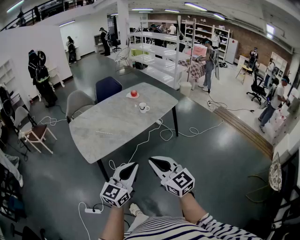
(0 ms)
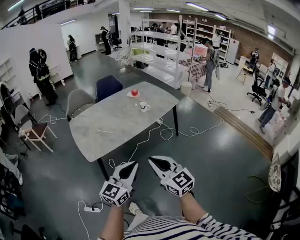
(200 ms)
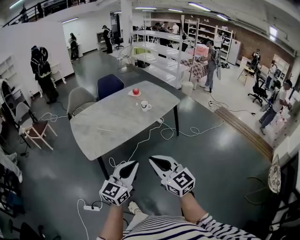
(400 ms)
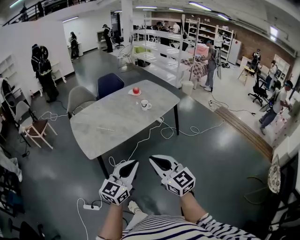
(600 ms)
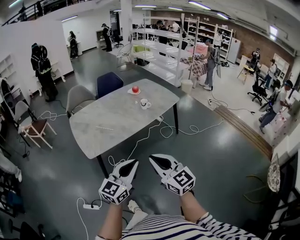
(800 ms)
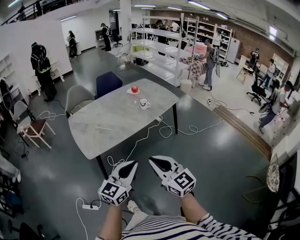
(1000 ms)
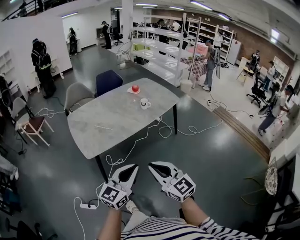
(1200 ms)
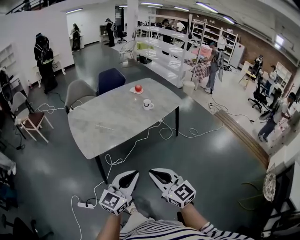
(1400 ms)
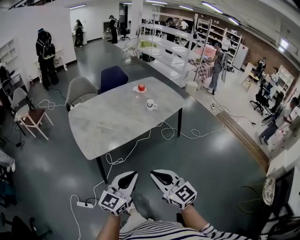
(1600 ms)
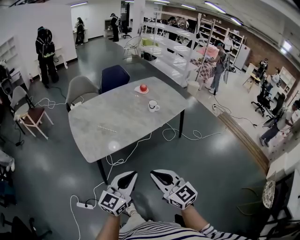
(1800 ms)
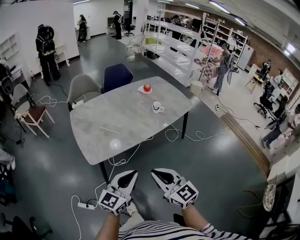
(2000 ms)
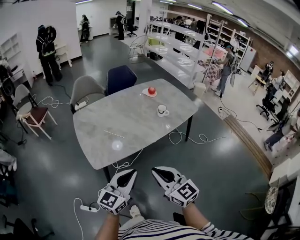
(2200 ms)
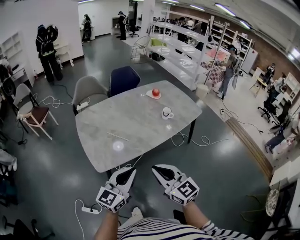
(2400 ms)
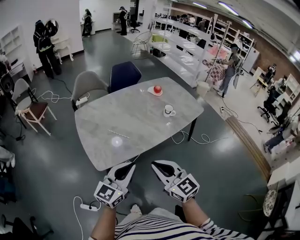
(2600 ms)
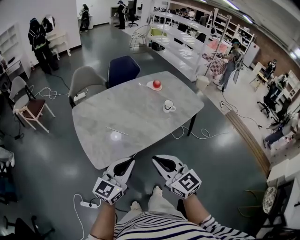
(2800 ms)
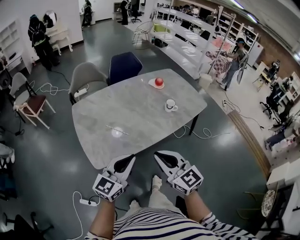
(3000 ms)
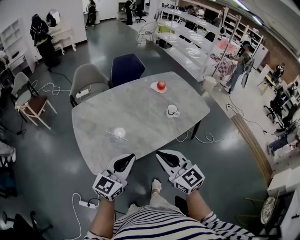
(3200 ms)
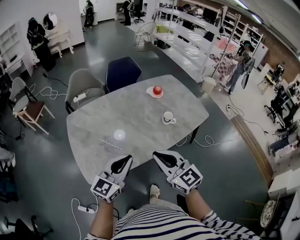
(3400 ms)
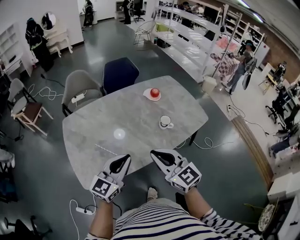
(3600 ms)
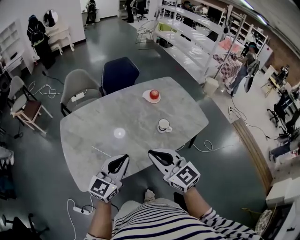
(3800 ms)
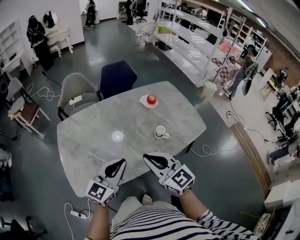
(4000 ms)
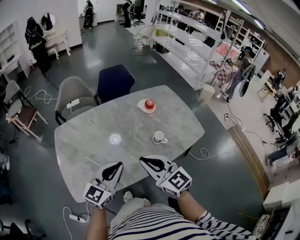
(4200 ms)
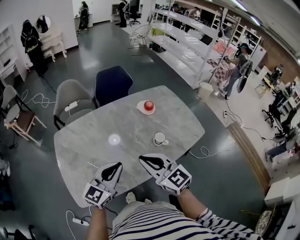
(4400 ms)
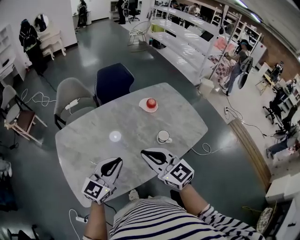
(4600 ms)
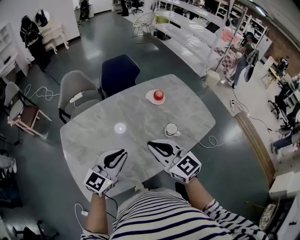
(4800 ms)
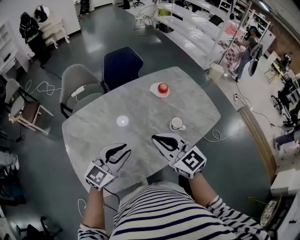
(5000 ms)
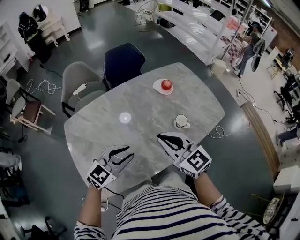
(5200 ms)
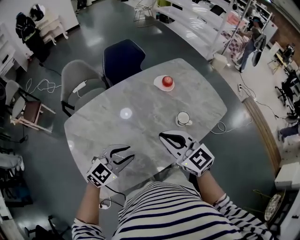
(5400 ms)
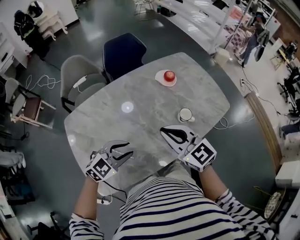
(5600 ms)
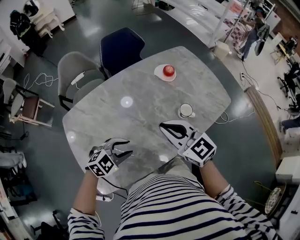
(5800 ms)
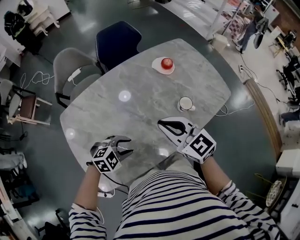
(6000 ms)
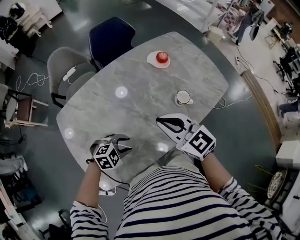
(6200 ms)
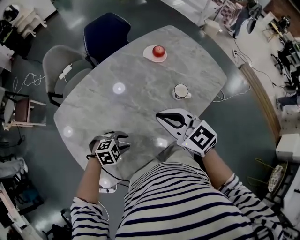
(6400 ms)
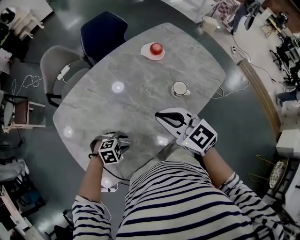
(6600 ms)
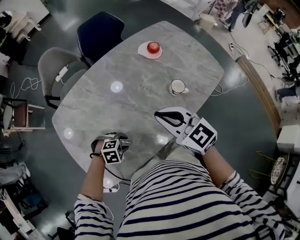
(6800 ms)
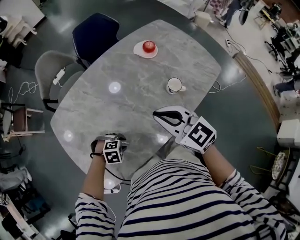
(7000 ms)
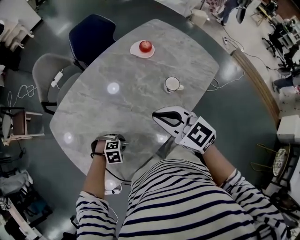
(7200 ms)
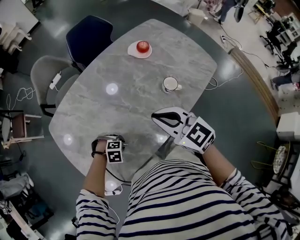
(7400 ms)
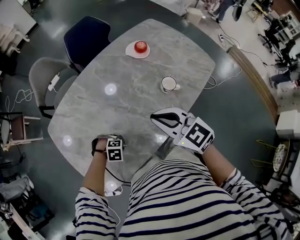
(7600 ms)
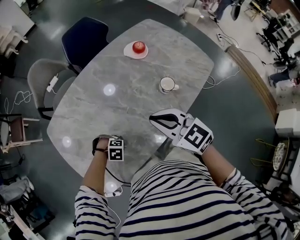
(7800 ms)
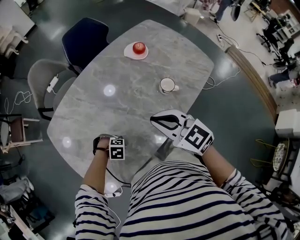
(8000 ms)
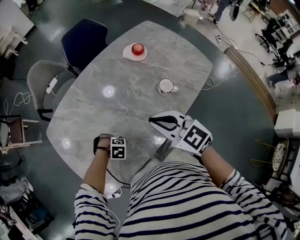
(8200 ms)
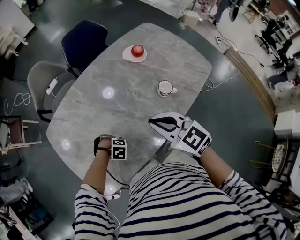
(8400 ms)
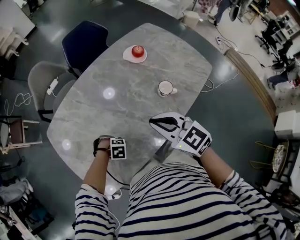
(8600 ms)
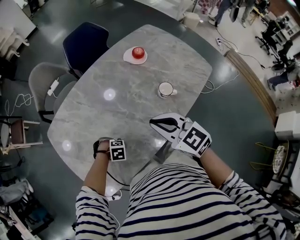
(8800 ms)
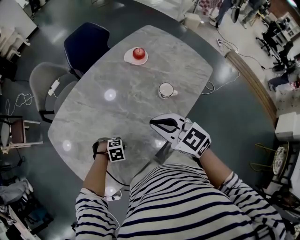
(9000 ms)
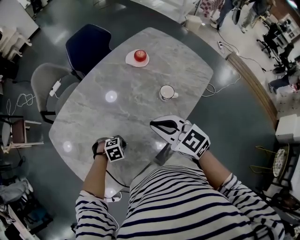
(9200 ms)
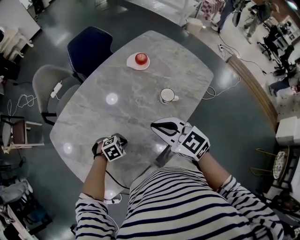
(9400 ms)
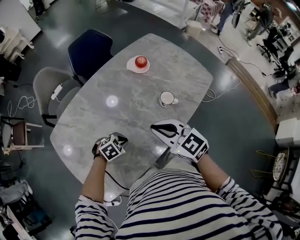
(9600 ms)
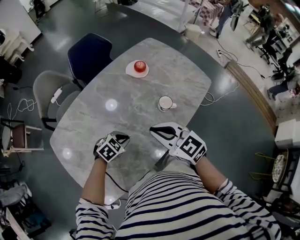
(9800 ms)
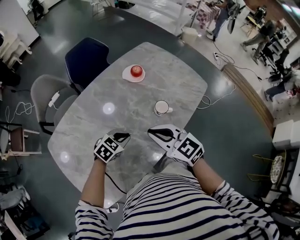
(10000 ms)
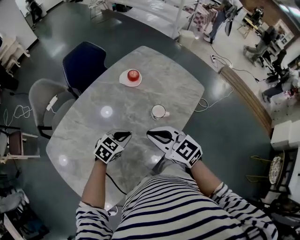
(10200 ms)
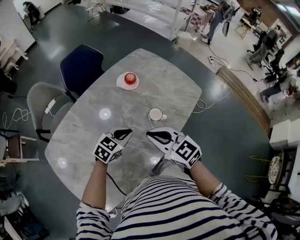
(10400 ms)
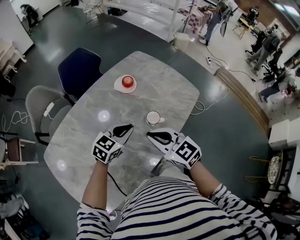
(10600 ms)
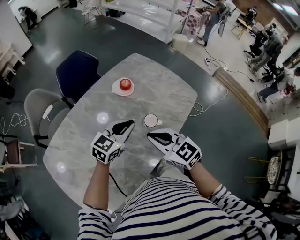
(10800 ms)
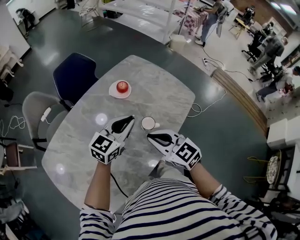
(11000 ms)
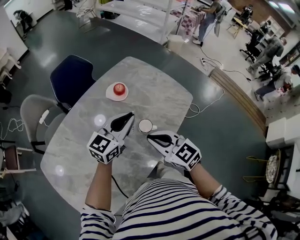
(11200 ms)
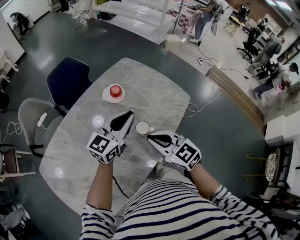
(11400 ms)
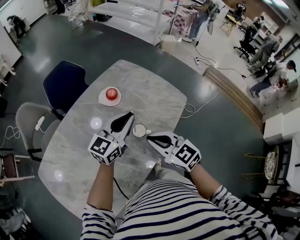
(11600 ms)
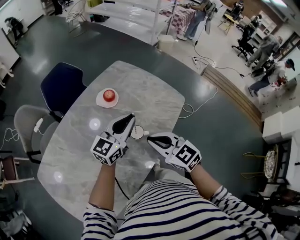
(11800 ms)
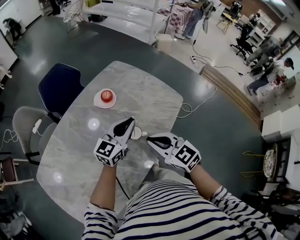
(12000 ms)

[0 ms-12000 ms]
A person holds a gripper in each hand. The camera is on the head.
0 ms to 1600 ms: The left gripper shifts by about 5 cm. The right gripper moves some 5 cm.
1600 ms to 3000 ms: The right gripper heads forward, covering about 20 cm. Meanwhile the left gripper is displaced forward and to the left by some 25 cm.
3000 ms to 4400 ms: The two grippers go roughly 25 cm forward.
4400 ms to 6000 ms: The right gripper is displaced forward by about 10 cm. Meanwhile the left gripper heads downward, covering approximately 20 cm, points its fingers approximately 50 degrees further downward, and opens up.
6000 ms to 7600 ms: The left gripper heads downward, covering approximately 15 cm, and changes its angle by some 40 degrees.
7600 ms to 9000 ms: There are only small adjustments of the grippers.
9000 ms to 10400 ms: The right gripper changes place by roughly 5 cm. The left gripper ends up roughly 30 cm from where it was, and points its fingers some 40 degrees further upward.
10400 ms to 12000 ms: The right gripper heads to the right and forward, covering approximately 10 cm; the left gripper heads to the right, forward and upward, covering approximately 20 cm, and points its fingers approximately 30 degrees further upward.

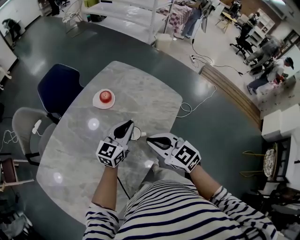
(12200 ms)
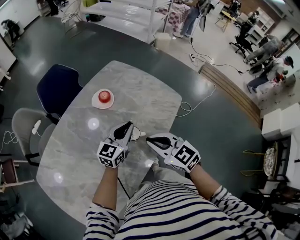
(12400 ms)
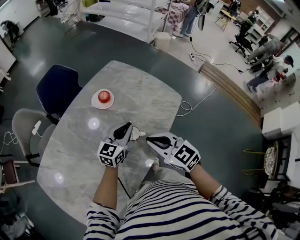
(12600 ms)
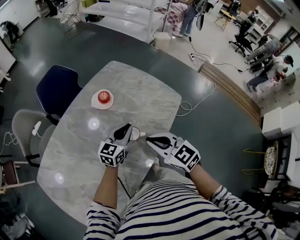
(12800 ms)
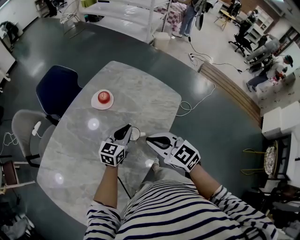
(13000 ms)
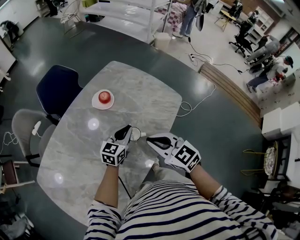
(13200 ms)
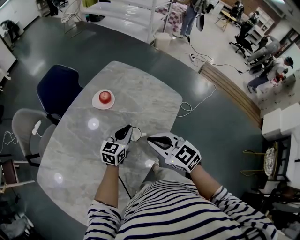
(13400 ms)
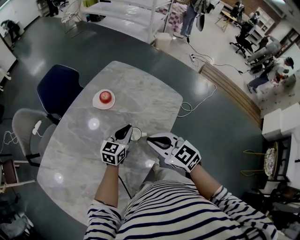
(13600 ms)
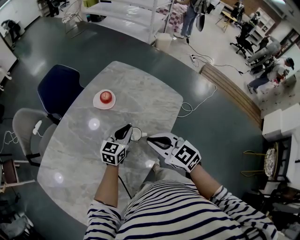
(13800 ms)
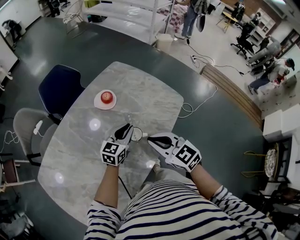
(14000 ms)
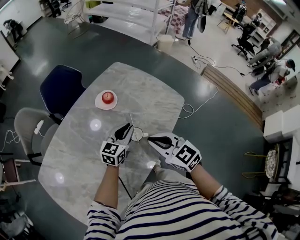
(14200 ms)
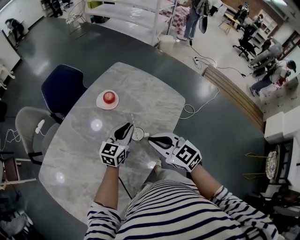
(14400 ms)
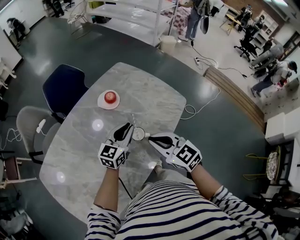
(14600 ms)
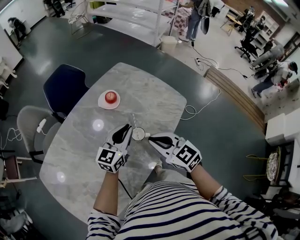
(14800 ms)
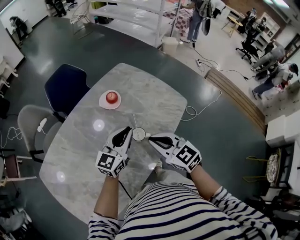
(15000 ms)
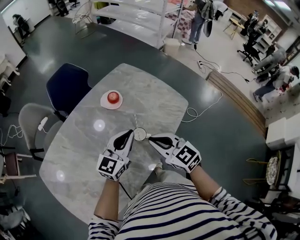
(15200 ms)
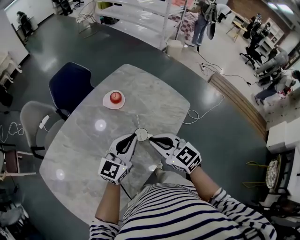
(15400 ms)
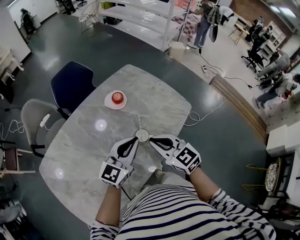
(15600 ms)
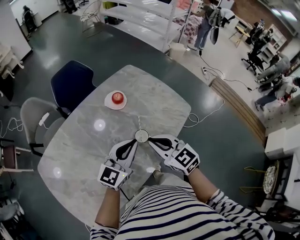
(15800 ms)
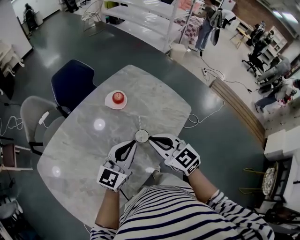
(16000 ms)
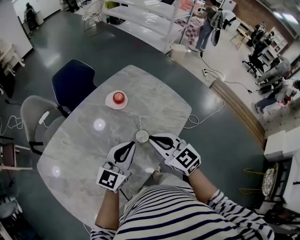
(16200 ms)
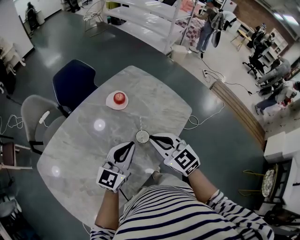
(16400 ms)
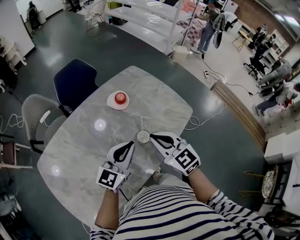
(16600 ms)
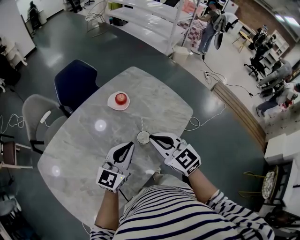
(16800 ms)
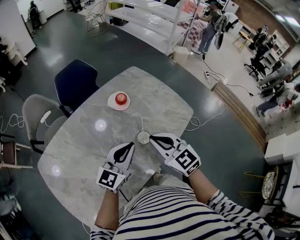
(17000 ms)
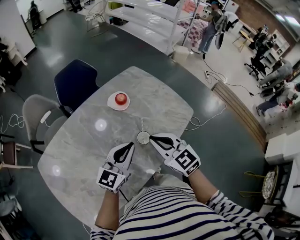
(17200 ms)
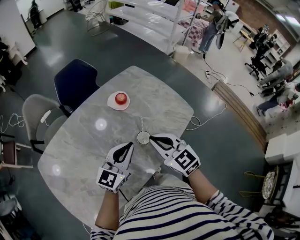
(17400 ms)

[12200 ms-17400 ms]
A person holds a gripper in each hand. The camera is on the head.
12200 ms to 14000 ms: The left gripper is displaced downward by some 5 cm.
14000 ms to 15600 ms: The left gripper heads upward and backward, covering about 15 cm.
15600 ms to 17400 ms: The grippers stay close to where they were, moving slightly.

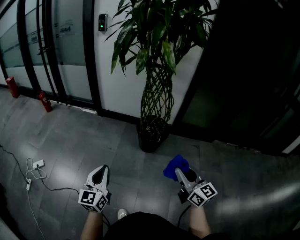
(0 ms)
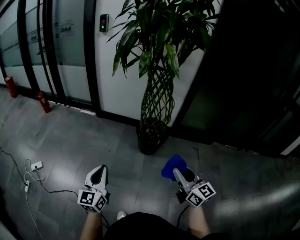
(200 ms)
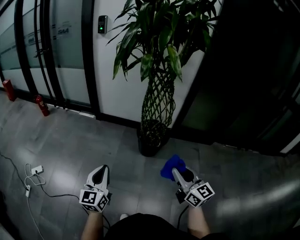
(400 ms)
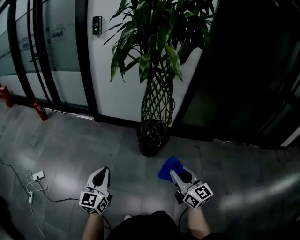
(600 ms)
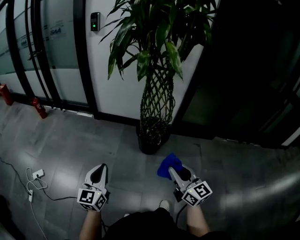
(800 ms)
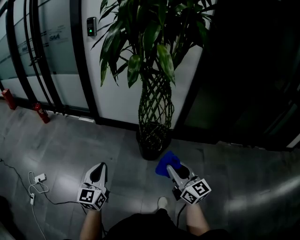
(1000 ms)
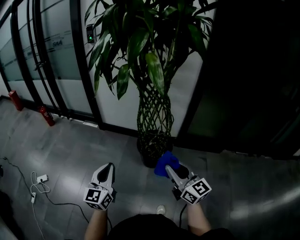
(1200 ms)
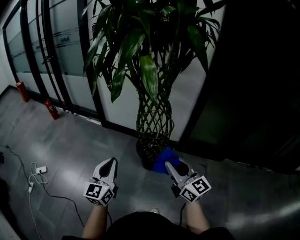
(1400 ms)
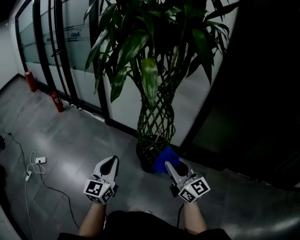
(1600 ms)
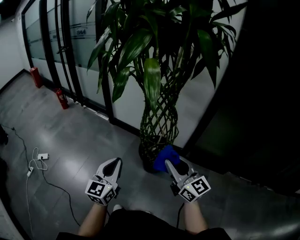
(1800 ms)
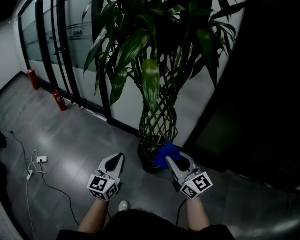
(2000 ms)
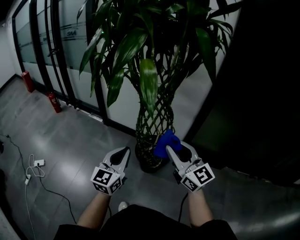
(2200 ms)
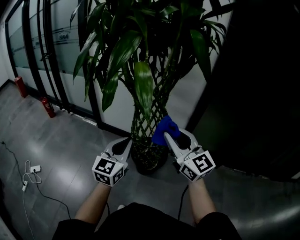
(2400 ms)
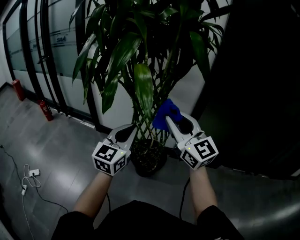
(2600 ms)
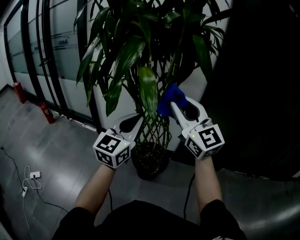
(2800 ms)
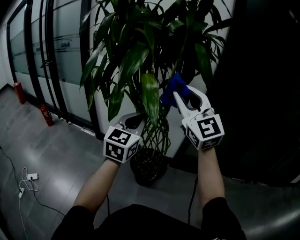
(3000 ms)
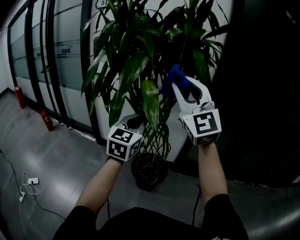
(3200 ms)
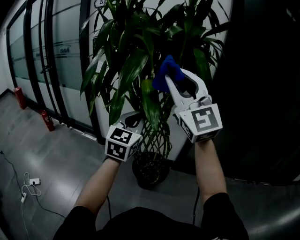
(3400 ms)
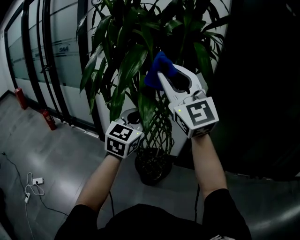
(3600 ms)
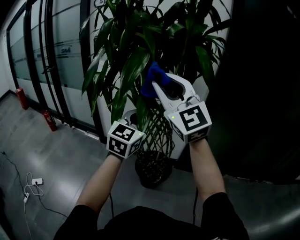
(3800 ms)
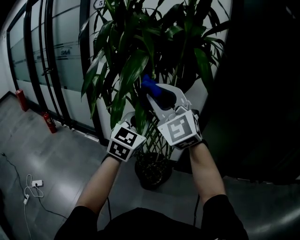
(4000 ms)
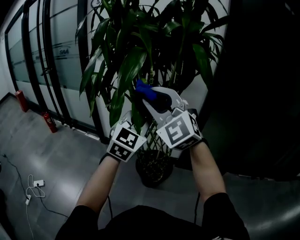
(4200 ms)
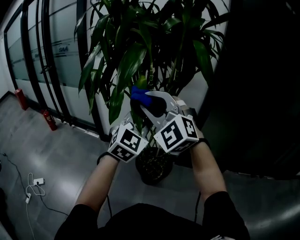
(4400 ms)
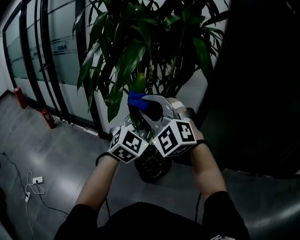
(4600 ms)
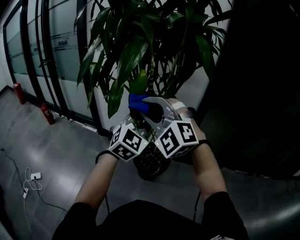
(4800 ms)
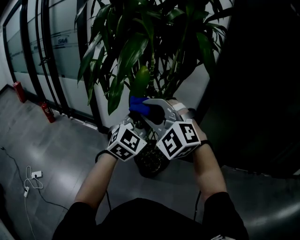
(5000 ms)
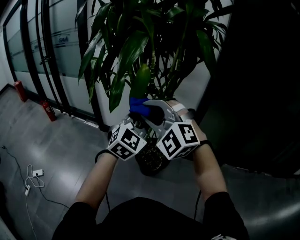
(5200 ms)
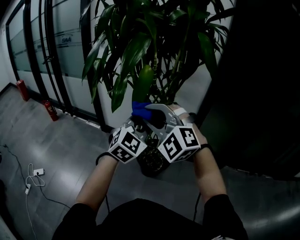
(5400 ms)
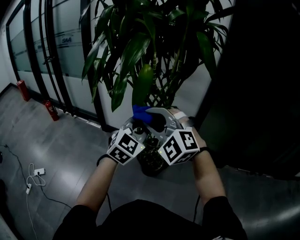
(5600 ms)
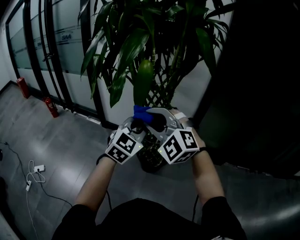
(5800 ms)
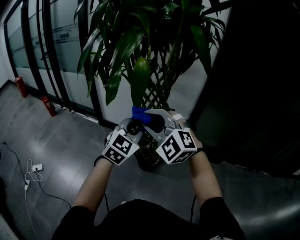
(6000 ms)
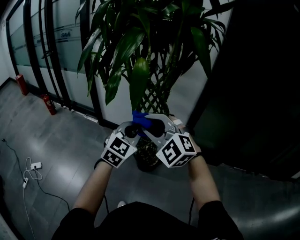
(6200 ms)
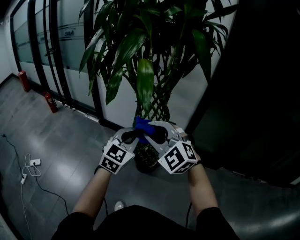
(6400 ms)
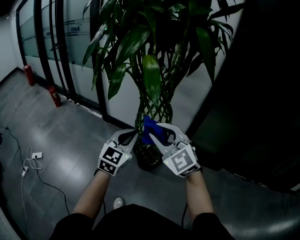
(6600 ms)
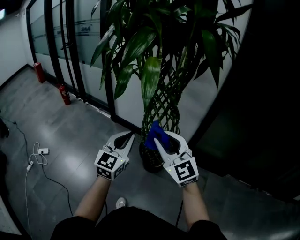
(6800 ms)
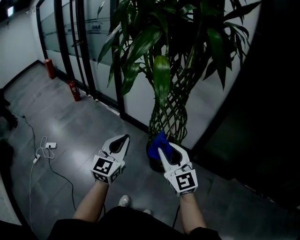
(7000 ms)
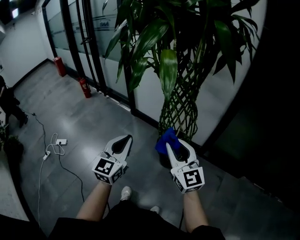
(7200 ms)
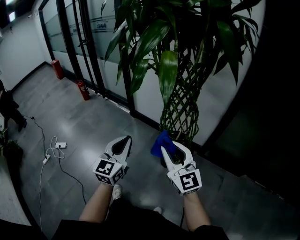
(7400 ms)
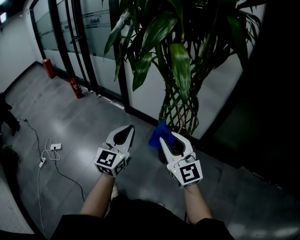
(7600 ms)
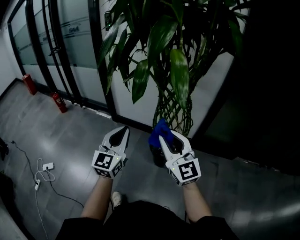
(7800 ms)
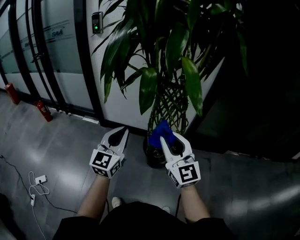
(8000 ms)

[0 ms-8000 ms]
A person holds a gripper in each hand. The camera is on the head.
0 ms to 1600 ms: The left gripper goes roughly 30 cm to the right and forward. The right gripper shifts roughly 25 cm forward and to the right.
1600 ms to 3200 ms: The right gripper goes approximately 35 cm upward and forward, and rotates around the line of its fingers by approximately 50 degrees, counterclockwise from behind. The left gripper goes approximately 30 cm forward, upward and to the right.
3200 ms to 4800 ms: The left gripper changes its angle by some 30 degrees, while the right gripper moves downward and to the left, approximately 20 cm, and tilts its fingers about 30 degrees downward.
4800 ms to 6400 ms: The two grippers go approximately 10 cm downward and backward. The right gripper changes its angle by about 20 degrees.
6400 ms to 8000 ms: The right gripper goes some 5 cm to the left, and rotates roughly 50 degrees, while the left gripper shifts approximately 20 cm to the left and forward.
